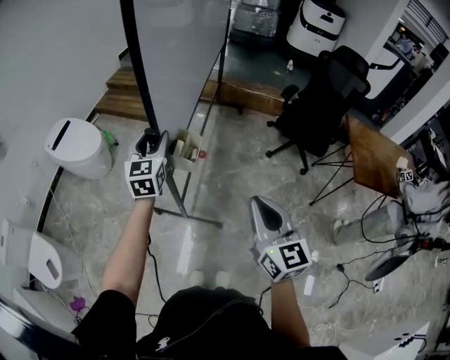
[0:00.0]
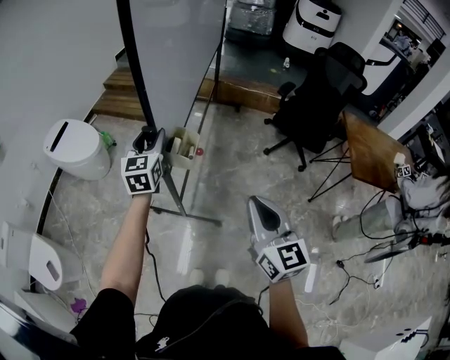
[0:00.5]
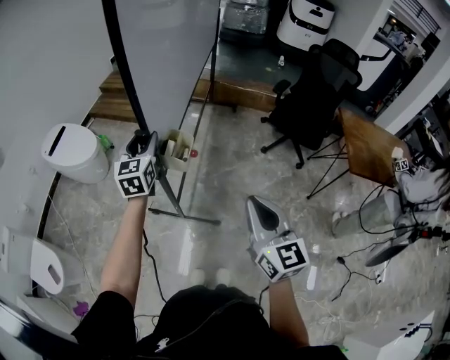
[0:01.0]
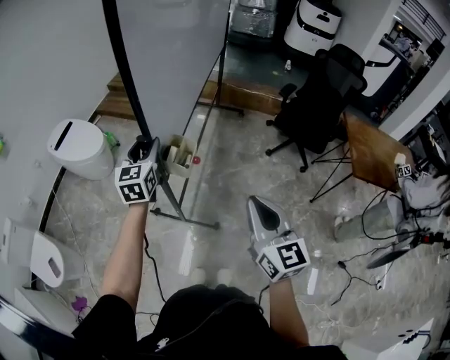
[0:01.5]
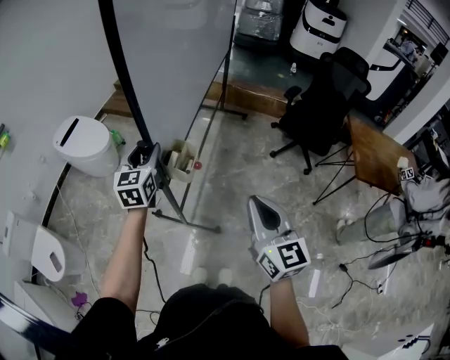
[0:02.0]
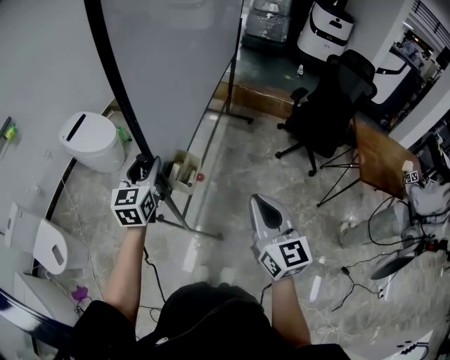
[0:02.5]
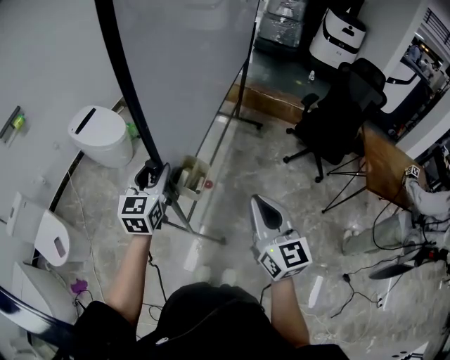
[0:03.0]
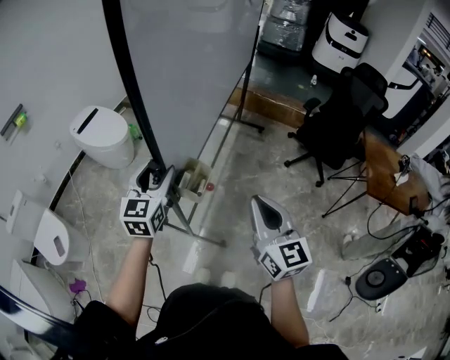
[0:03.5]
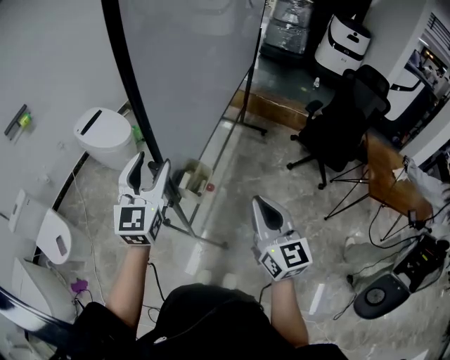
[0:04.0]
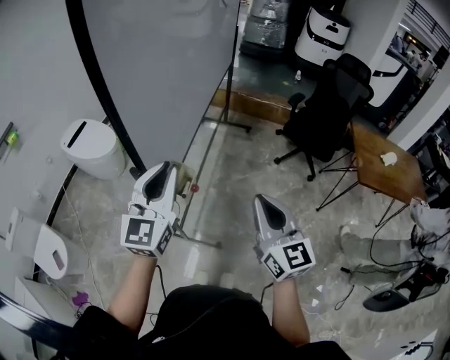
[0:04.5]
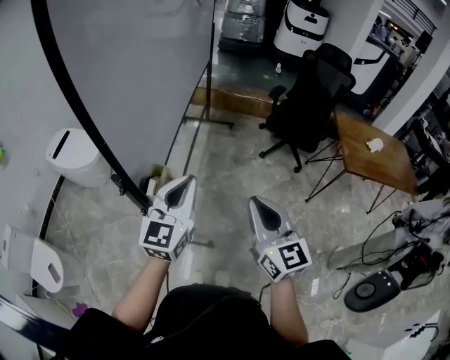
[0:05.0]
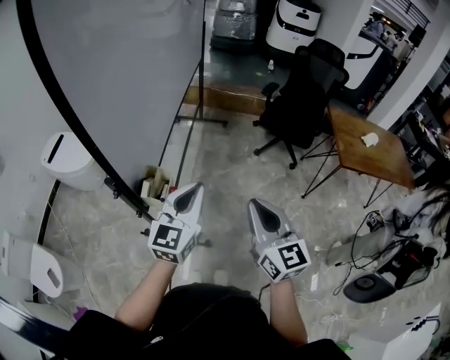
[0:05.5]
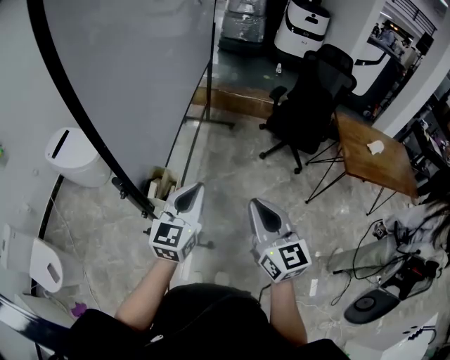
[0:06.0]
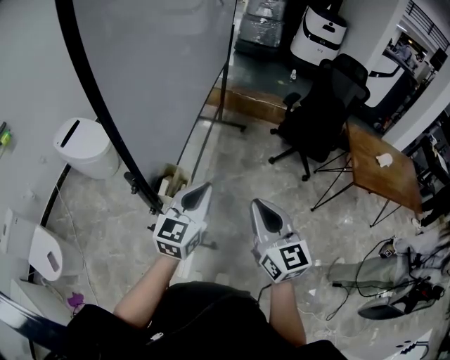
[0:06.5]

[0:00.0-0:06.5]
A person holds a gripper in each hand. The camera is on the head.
0:00.0 to 0:02.0: The right gripper is displaced backward by roughly 5 cm. Meanwhile the left gripper travels backward by some 10 cm.
0:02.0 to 0:04.5: The left gripper moves backward, upward and to the right, about 20 cm, and closes up.
0:04.5 to 0:06.5: The left gripper heads to the right and downward, covering approximately 15 cm, and turns by roughly 20 degrees.

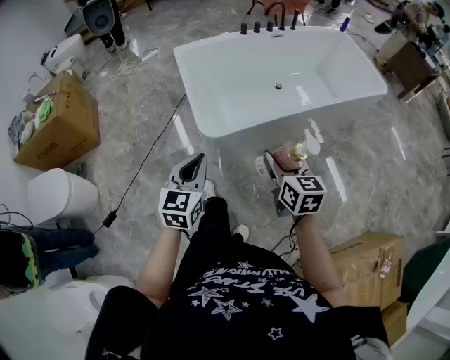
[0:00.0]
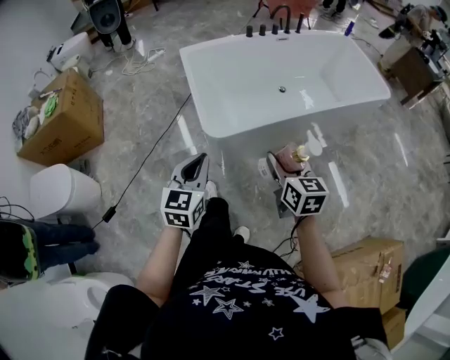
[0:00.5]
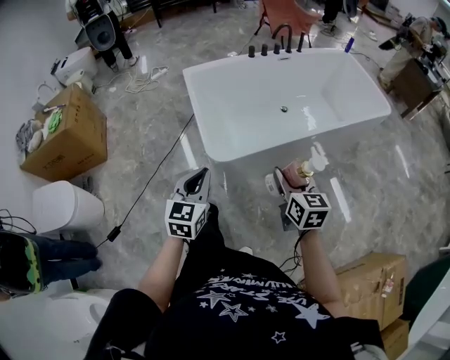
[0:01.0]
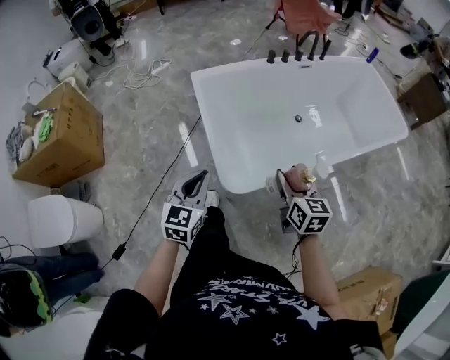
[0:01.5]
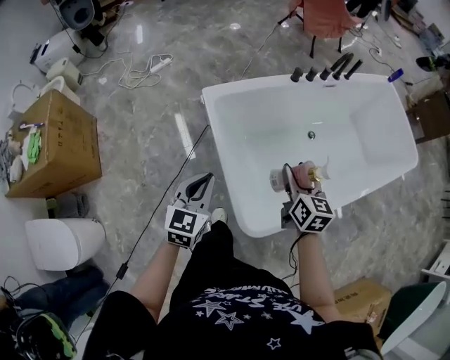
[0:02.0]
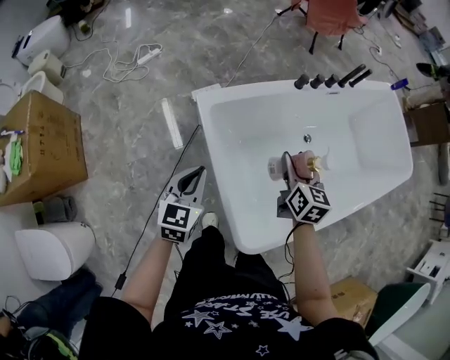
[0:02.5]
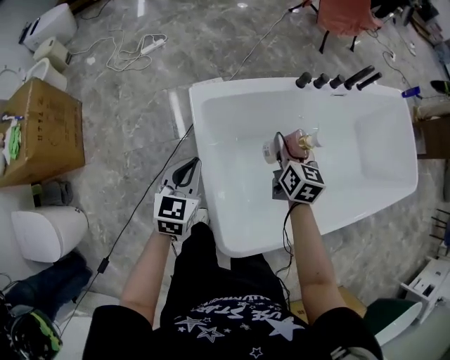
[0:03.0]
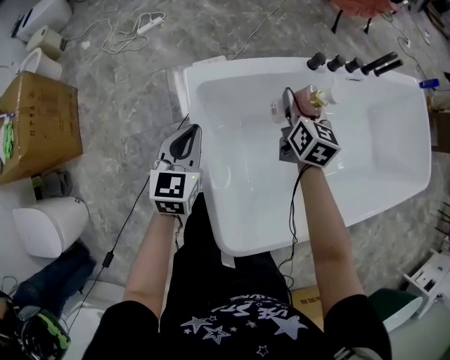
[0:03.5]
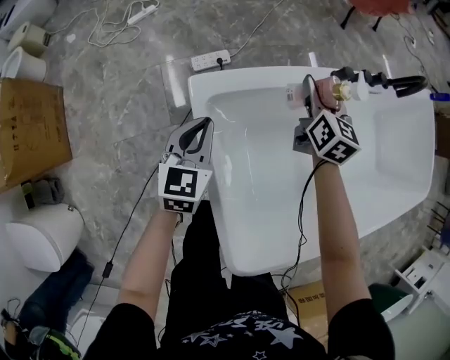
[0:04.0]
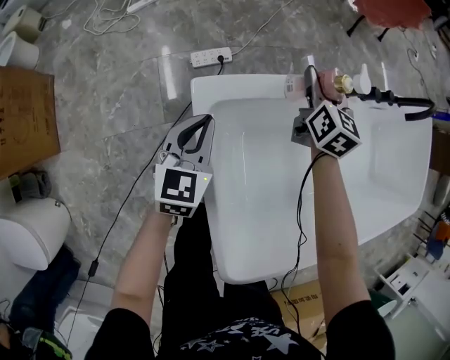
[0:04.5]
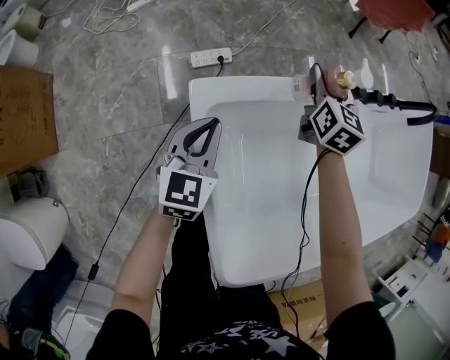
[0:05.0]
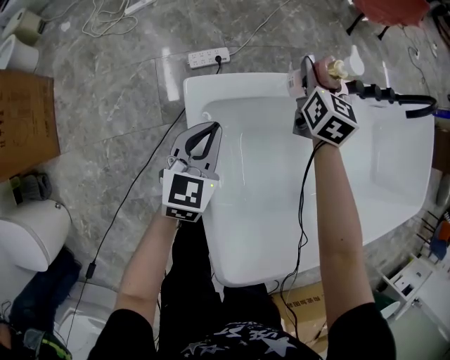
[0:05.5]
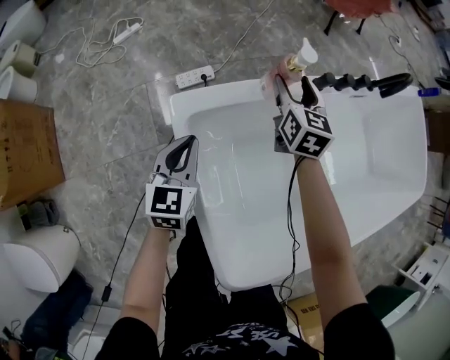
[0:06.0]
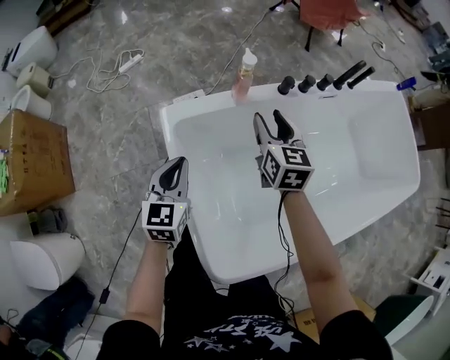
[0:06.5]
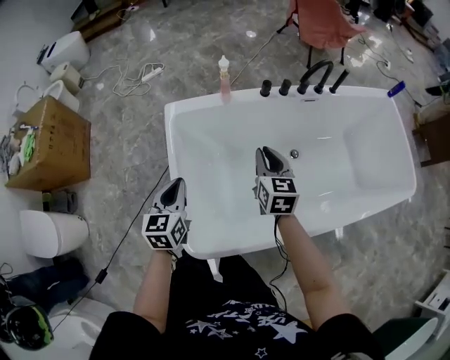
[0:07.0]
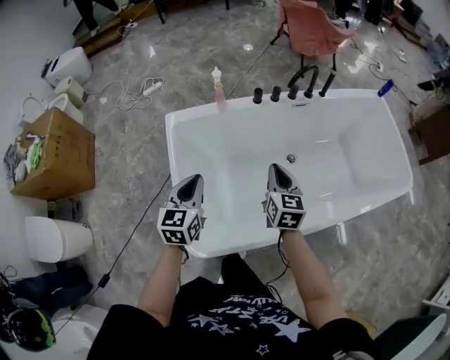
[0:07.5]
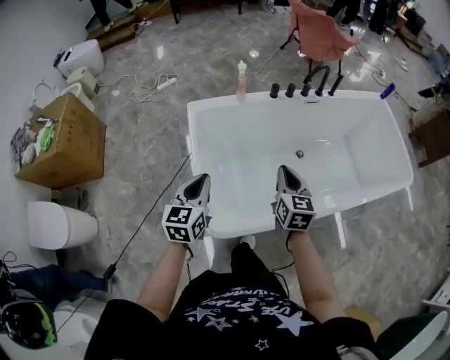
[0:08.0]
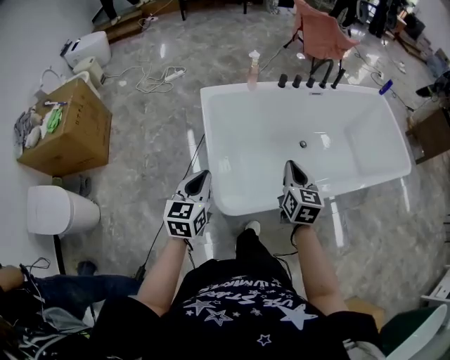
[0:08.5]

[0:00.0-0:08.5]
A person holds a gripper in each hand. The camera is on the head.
0:00.0 to 0:02.0: The pair of grippers is taken forward and to the left, some 50 cm.
0:02.0 to 0:04.0: The right gripper moves forward, roughly 40 cm, while the left gripper shifts some 40 cm forward and downward.
0:04.0 to 0:06.5: The right gripper goes roughly 15 cm backward and upward, while the left gripper is displaced upward, backward and to the right by roughly 15 cm.
0:06.5 to 0:08.5: The two grippers travel together, backward, approximately 40 cm. The right gripper closes its fingers. Meanwhile the left gripper goes about 20 cm upward.

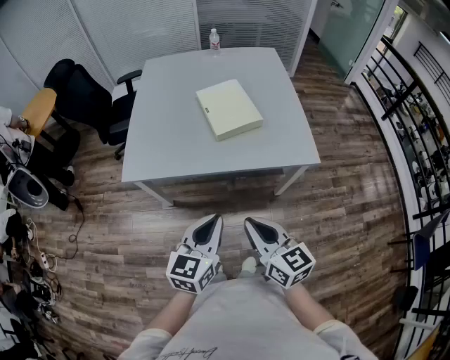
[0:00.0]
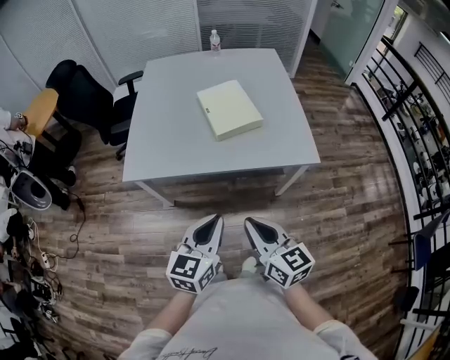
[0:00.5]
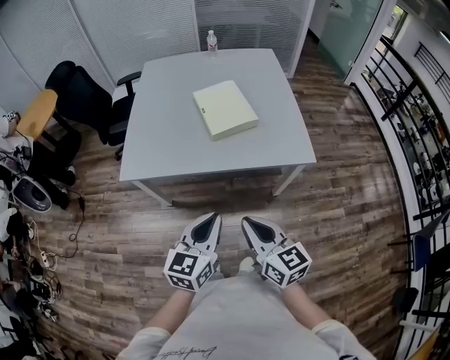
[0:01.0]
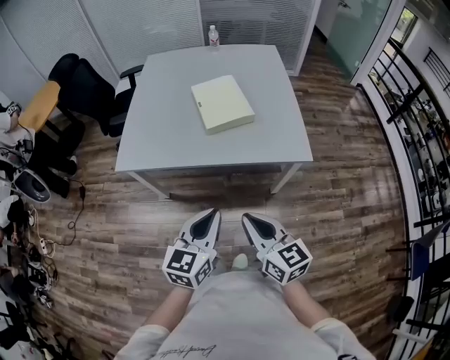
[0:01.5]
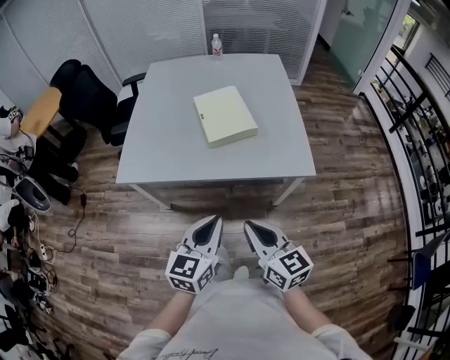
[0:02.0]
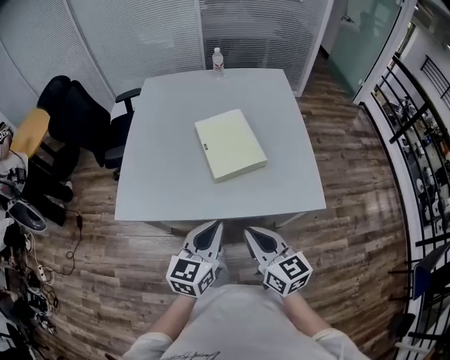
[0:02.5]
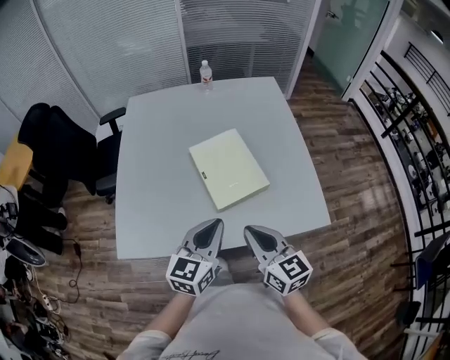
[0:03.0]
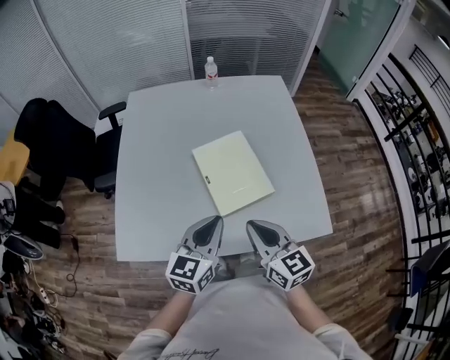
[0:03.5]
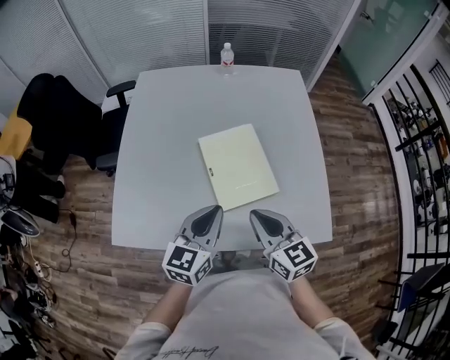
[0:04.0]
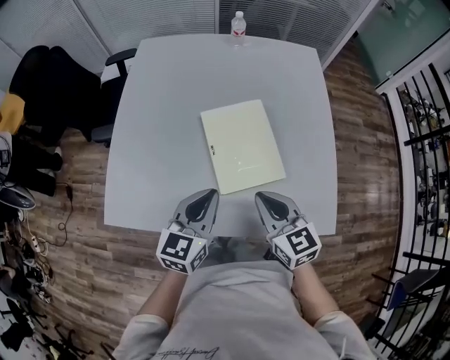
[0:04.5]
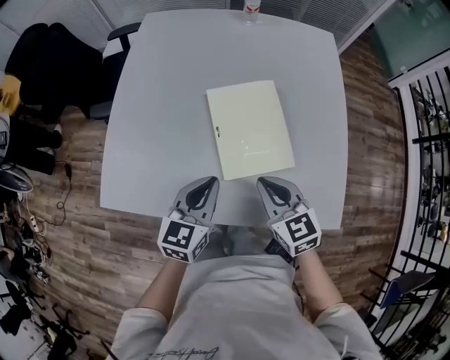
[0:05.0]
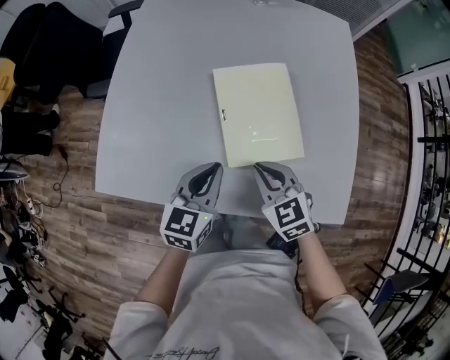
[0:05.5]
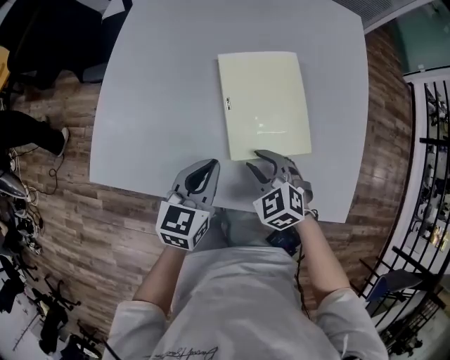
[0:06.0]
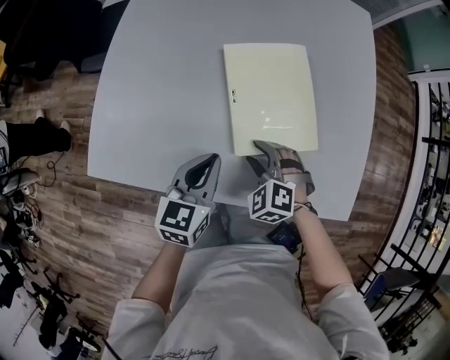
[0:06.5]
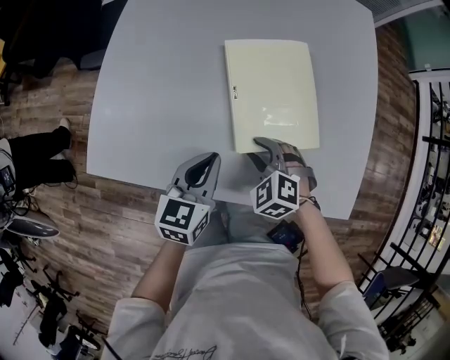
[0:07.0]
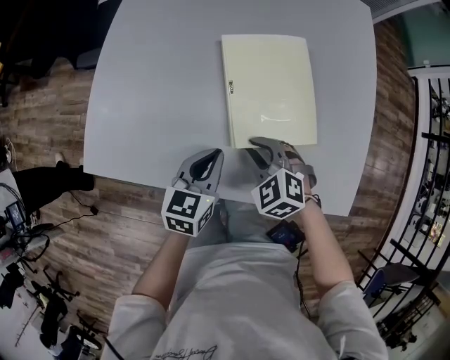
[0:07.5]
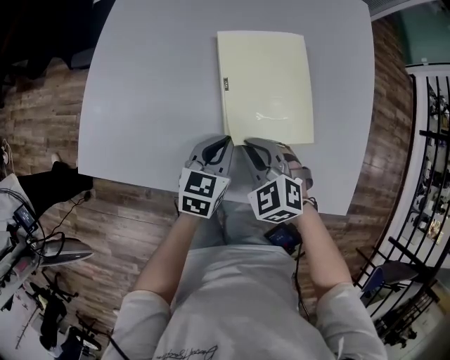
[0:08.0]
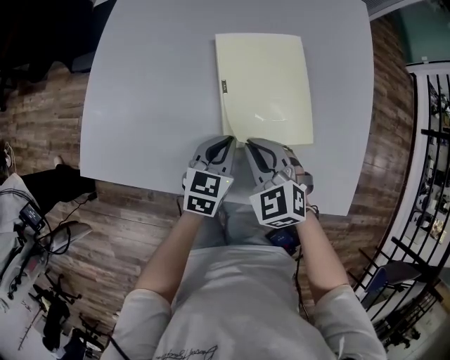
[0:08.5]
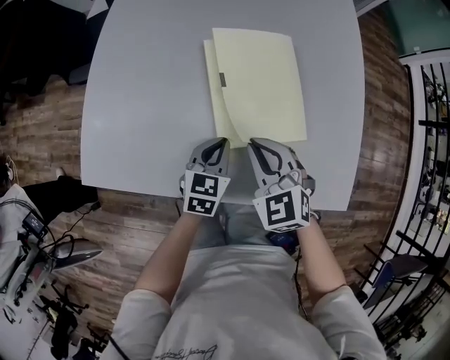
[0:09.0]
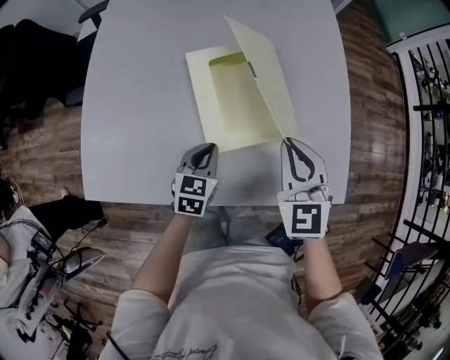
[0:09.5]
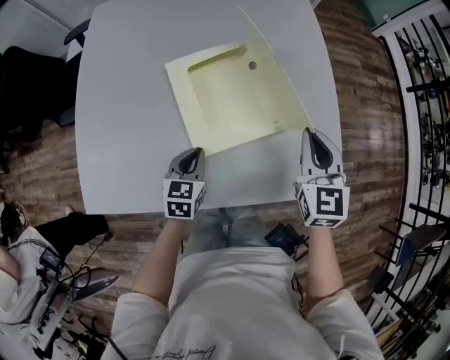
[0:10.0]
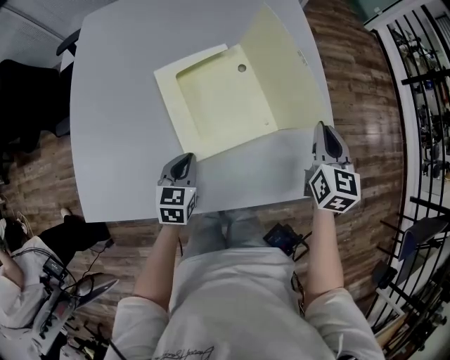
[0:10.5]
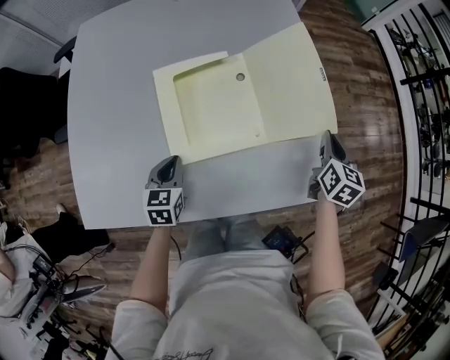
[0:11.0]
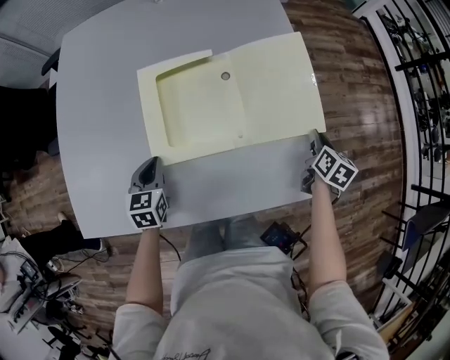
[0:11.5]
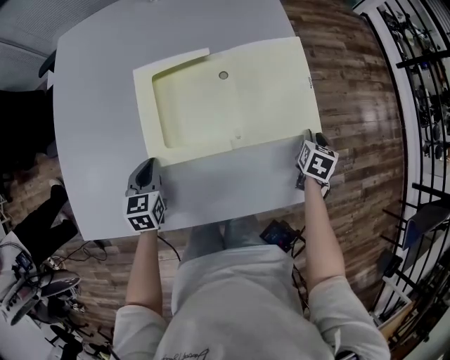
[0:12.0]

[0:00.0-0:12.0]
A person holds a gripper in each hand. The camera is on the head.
0:00.0 to 0:02.0: Both grippers move to the right, roughly 5 cm.
0:02.0 to 0:04.0: The grippers both shift forward by roughly 30 cm.
0:04.0 to 0:06.0: The grippers both shift downward by roughly 15 cm. The right gripper tips its fingers downward by about 30 degrees, and opens.
0:06.0 to 0:08.0: The left gripper travels downward by approximately 10 cm. Meanwhile the right gripper closes up.
0:08.0 to 0:10.0: The right gripper shifts about 25 cm to the right and upward, and swivels about 60 degrees.
0:10.0 to 0:12.0: The left gripper goes approximately 5 cm to the left, while the right gripper moves downward and to the right, approximately 30 cm, rotates about 50 degrees, and opens.
